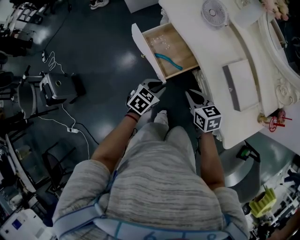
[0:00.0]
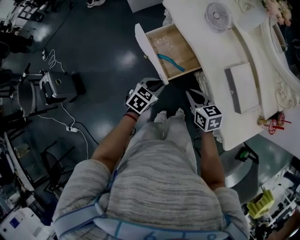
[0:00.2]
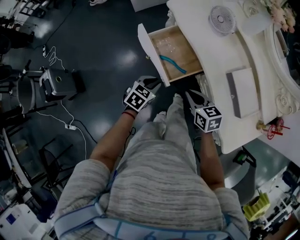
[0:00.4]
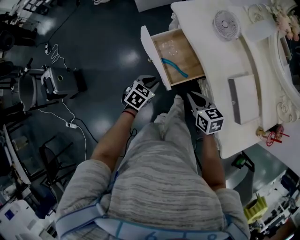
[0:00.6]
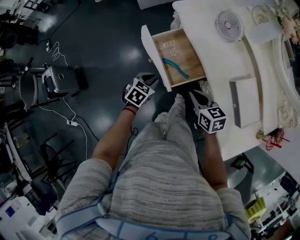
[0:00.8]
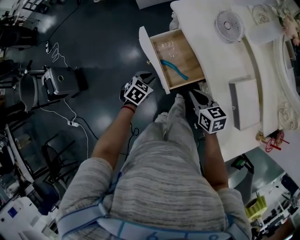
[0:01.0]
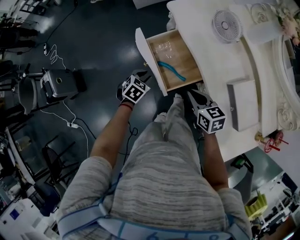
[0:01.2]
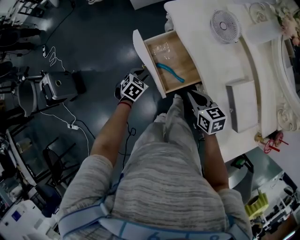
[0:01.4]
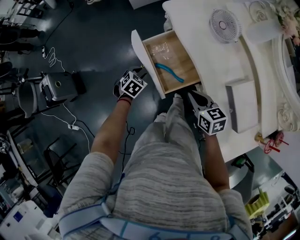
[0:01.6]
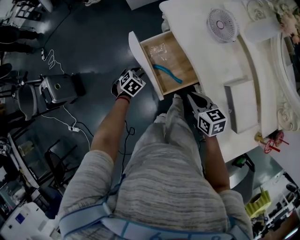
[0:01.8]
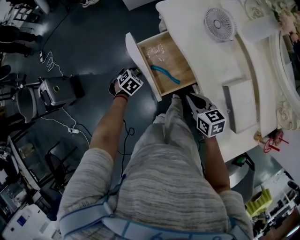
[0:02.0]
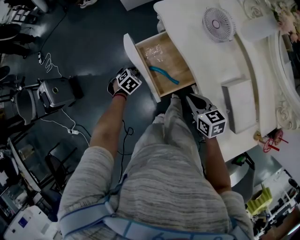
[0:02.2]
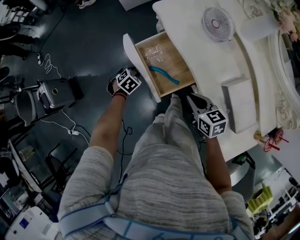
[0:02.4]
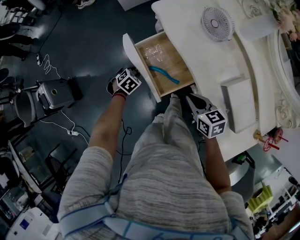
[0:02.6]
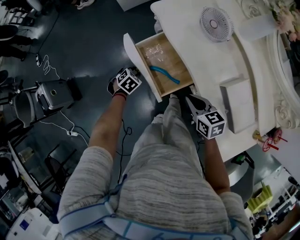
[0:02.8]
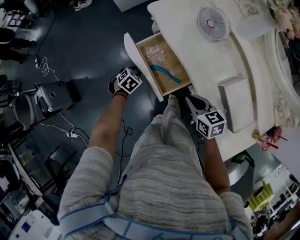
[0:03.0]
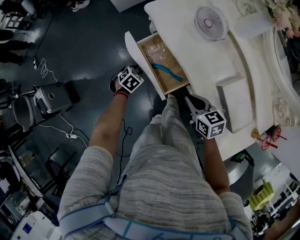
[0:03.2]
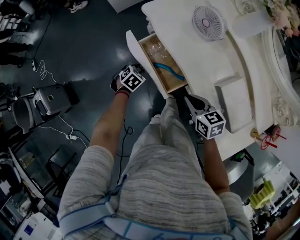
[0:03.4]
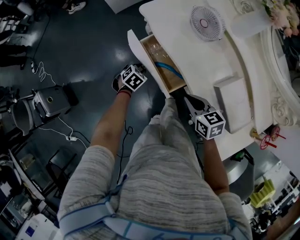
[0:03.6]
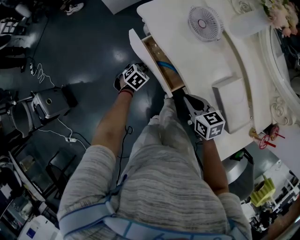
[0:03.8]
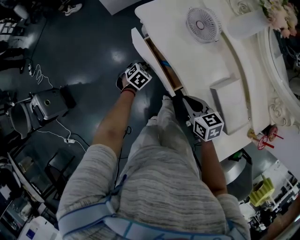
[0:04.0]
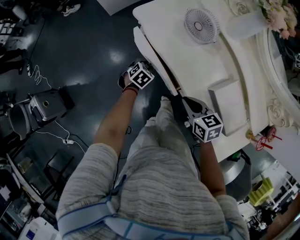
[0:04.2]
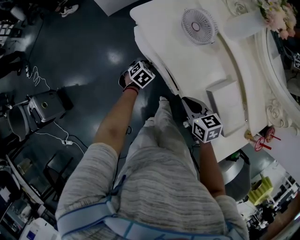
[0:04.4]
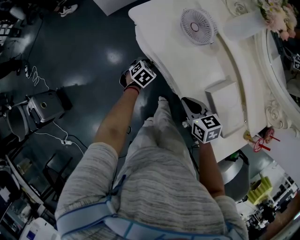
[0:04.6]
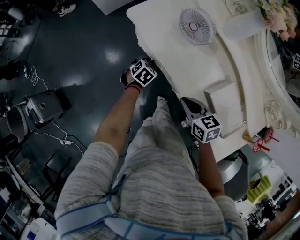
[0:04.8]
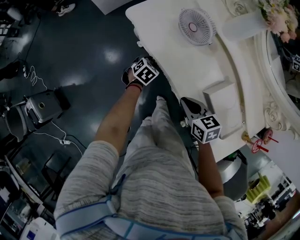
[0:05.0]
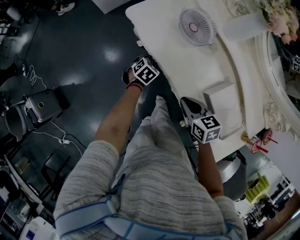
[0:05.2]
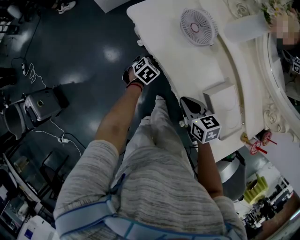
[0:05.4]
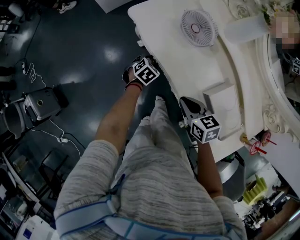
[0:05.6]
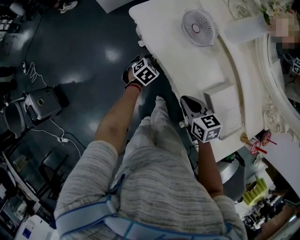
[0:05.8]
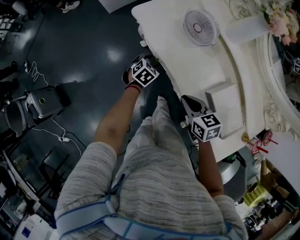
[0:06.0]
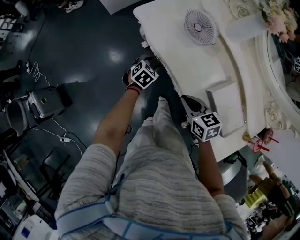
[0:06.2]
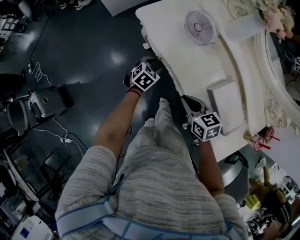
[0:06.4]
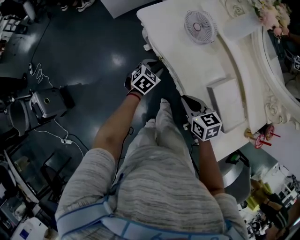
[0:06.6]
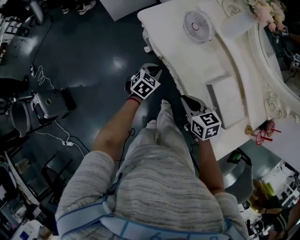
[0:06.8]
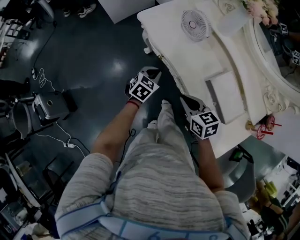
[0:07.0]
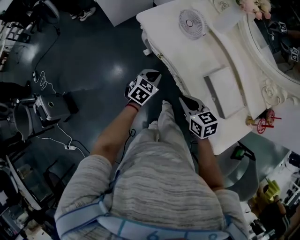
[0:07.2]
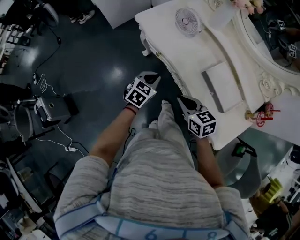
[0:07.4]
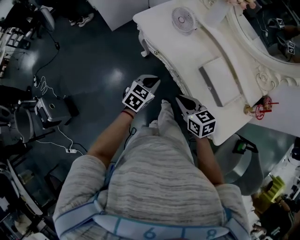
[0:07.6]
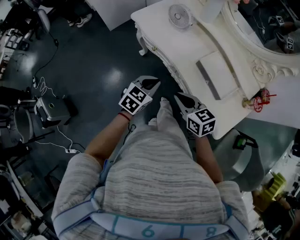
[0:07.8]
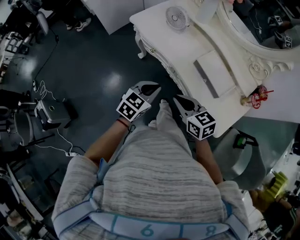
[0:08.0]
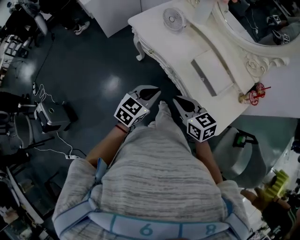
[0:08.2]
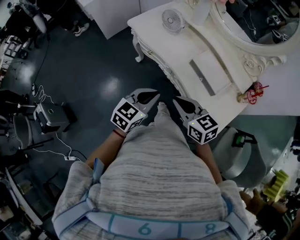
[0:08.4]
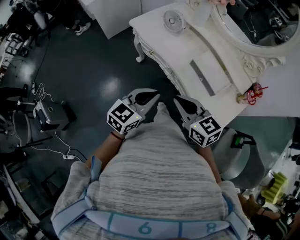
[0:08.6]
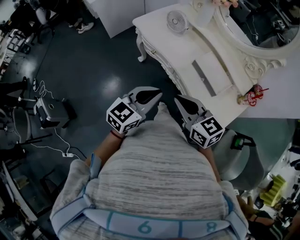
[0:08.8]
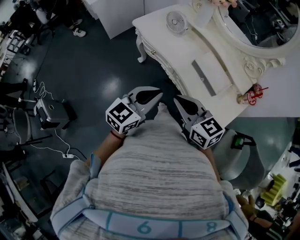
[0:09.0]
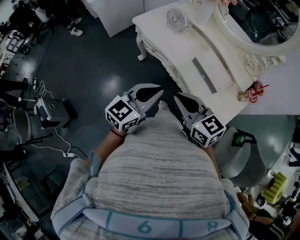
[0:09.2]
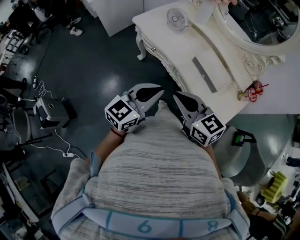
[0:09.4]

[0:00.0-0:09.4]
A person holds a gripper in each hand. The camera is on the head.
0:00.0 to 0:01.6: The left gripper goes some 20 cm forward, to the left and downward, and turns by approximately 20 degrees; the right gripper shifts some 10 cm forward.
0:01.6 to 0:03.2: The left gripper changes place by some 5 cm.
0:03.2 to 0:04.8: The left gripper travels to the right and forward by some 15 cm; the right gripper ends up approximately 5 cm from where it was.
0:04.8 to 0:06.2: The left gripper opens its fingers.
0:06.2 to 0:07.8: The right gripper travels backward and upward by roughly 20 cm, while the left gripper is displaced backward and upward by roughly 30 cm, changes its angle by roughly 20 degrees, and closes.
0:07.8 to 0:09.4: The grippers both shift upward and backward by approximately 15 cm. The left gripper turns by approximately 30 degrees.

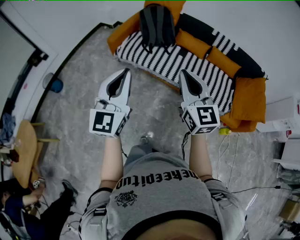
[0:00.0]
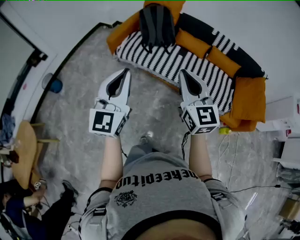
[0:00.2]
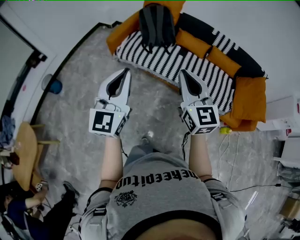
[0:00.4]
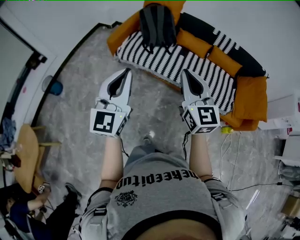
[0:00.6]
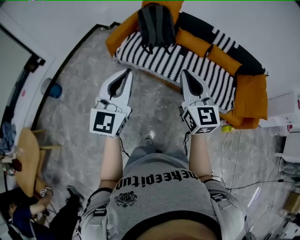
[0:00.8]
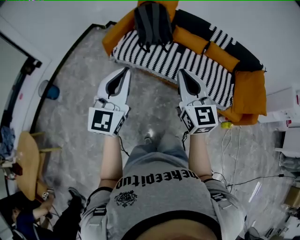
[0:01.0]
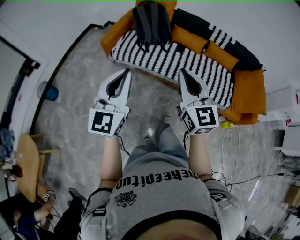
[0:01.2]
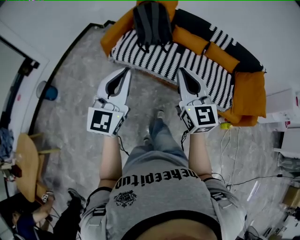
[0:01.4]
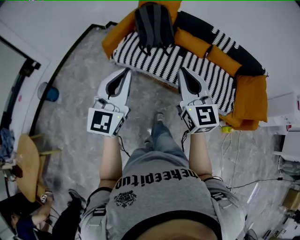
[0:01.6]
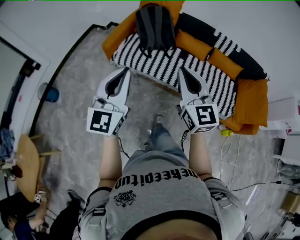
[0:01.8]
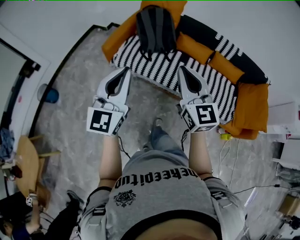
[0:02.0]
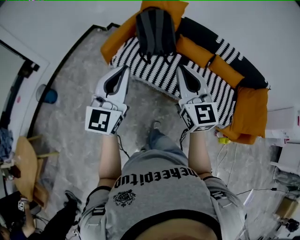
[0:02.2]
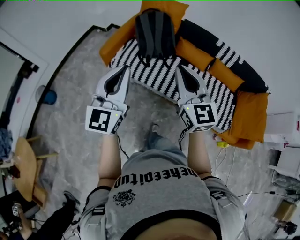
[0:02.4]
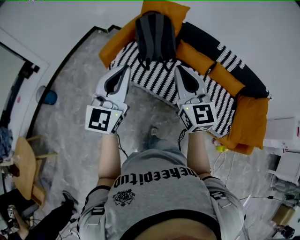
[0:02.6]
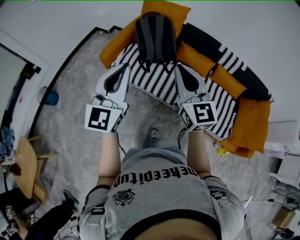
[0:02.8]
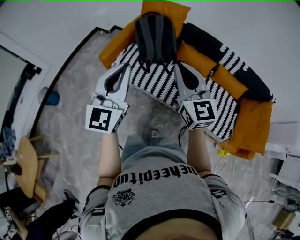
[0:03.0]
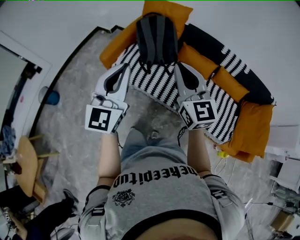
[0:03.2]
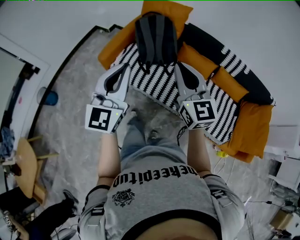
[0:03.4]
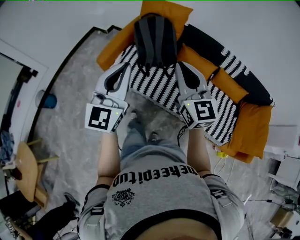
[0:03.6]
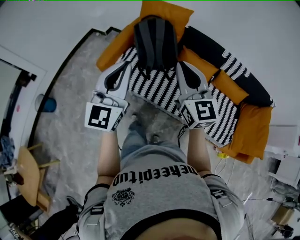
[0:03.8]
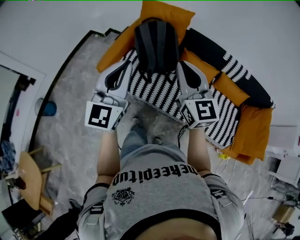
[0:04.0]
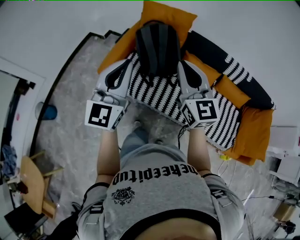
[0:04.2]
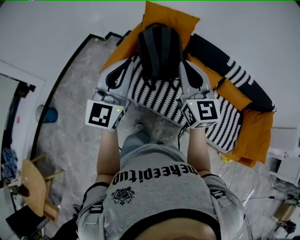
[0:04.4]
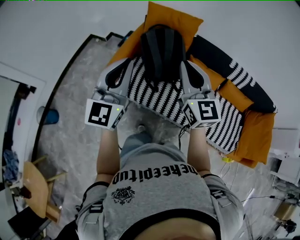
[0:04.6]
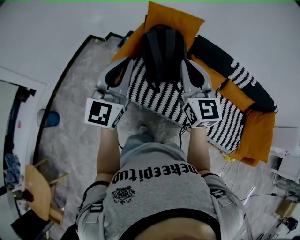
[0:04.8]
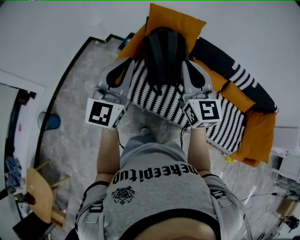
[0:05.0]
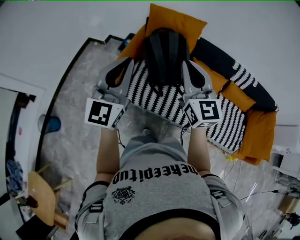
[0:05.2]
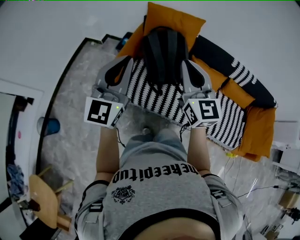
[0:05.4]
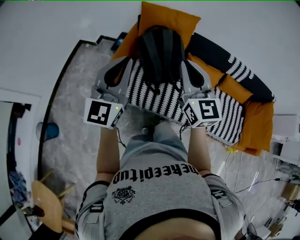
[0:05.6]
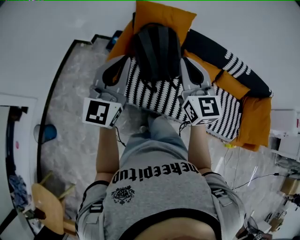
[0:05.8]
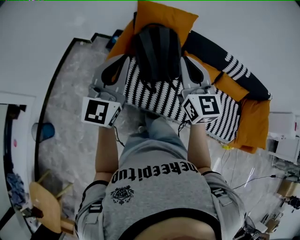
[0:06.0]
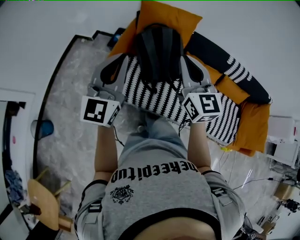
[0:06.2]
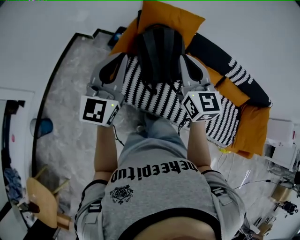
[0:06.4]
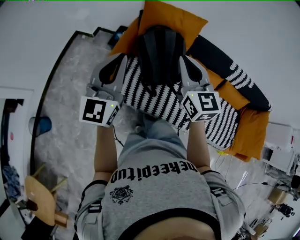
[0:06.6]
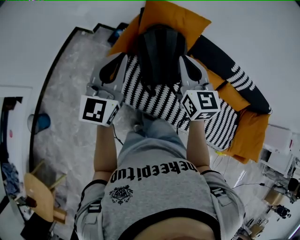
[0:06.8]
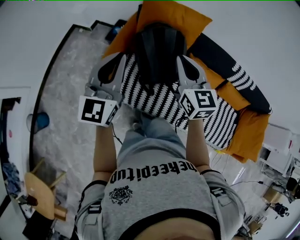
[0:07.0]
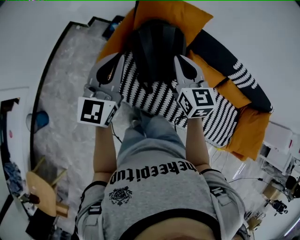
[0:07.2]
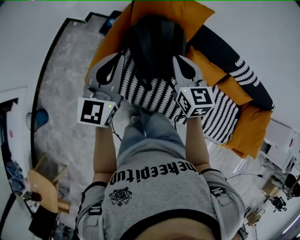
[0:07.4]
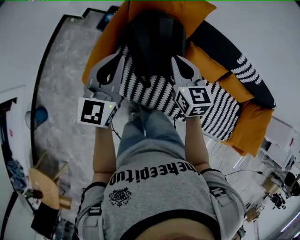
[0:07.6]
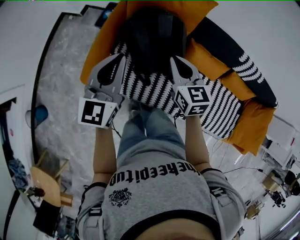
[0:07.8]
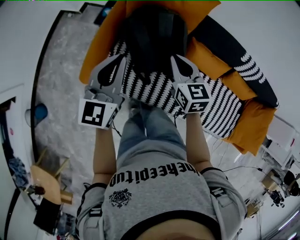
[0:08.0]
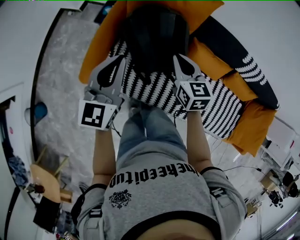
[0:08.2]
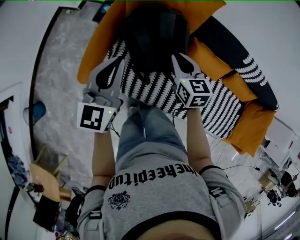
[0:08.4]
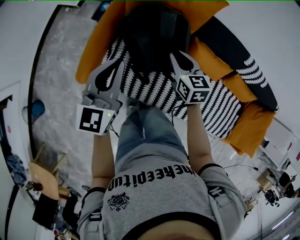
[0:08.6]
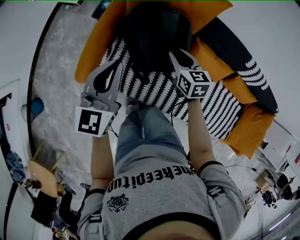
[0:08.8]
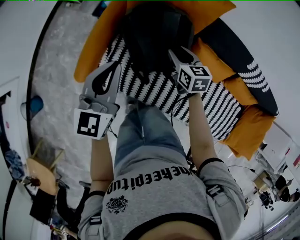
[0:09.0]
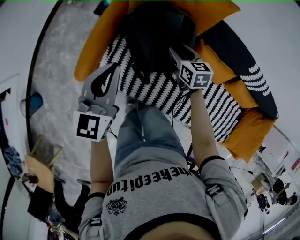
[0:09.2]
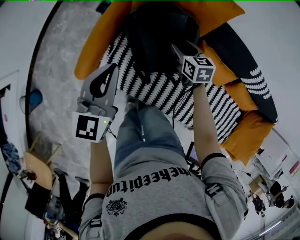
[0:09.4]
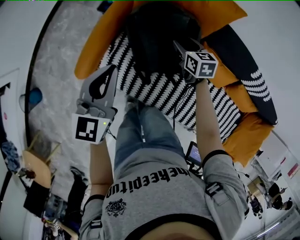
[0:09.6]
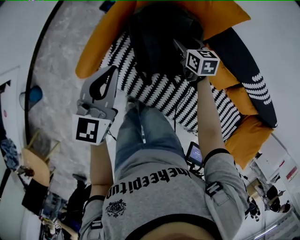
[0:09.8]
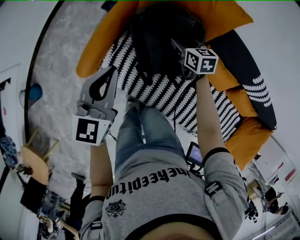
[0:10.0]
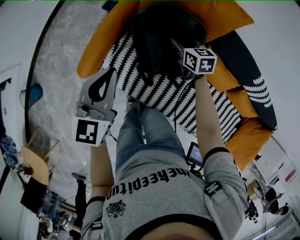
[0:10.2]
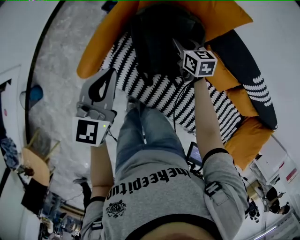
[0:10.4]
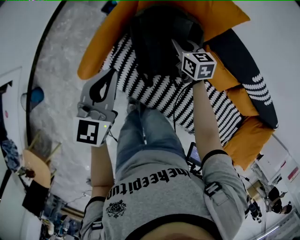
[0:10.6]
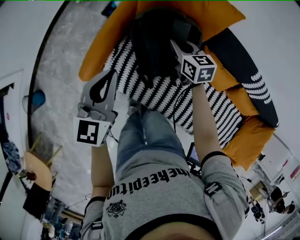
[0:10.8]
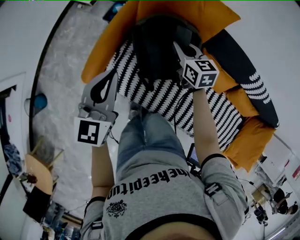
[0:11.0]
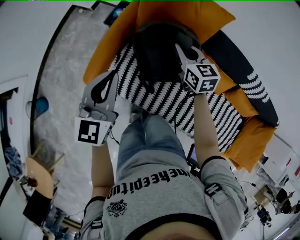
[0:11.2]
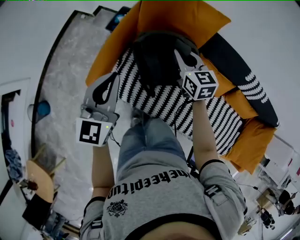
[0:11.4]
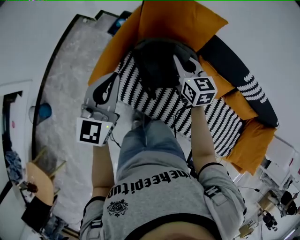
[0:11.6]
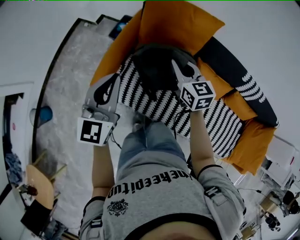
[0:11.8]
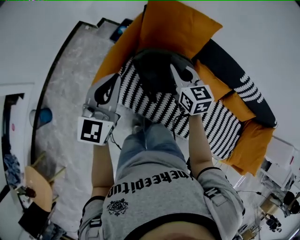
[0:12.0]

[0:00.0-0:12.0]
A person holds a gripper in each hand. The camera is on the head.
0:00.0 to 0:01.6: The grippers both shift forward by some 10 cm.
0:01.6 to 0:03.0: The grippers both shift forward by about 20 cm.
0:03.0 to 0:04.4: Both grippers travel together forward and to the left, roughly 20 cm.
0:04.4 to 0:06.0: The two grippers go roughly 10 cm forward and to the left.
0:06.0 to 0:07.6: The right gripper travels downward and forward by some 20 cm, and changes its angle by roughly 20 degrees; the left gripper travels forward and downward by roughly 15 cm.
0:07.6 to 0:09.0: The left gripper travels downward by some 5 cm. Meanwhile the right gripper heads downward and forward, covering some 20 cm, and opens its fingers.
0:09.0 to 0:10.4: The right gripper is displaced forward by some 5 cm, and closes.
0:10.4 to 0:12.0: The left gripper goes about 10 cm upward and backward, while the right gripper shifts about 20 cm upward and backward, and rotates some 20 degrees.

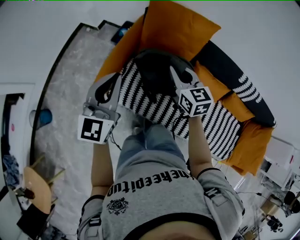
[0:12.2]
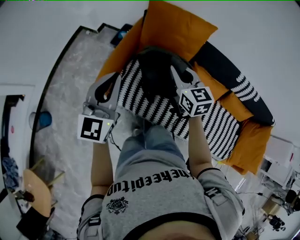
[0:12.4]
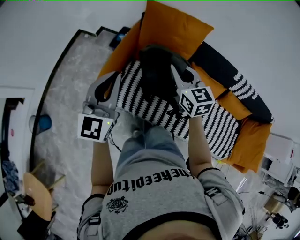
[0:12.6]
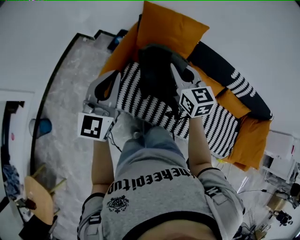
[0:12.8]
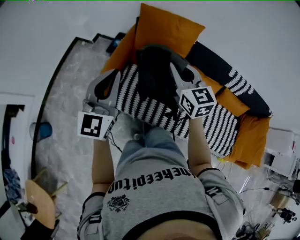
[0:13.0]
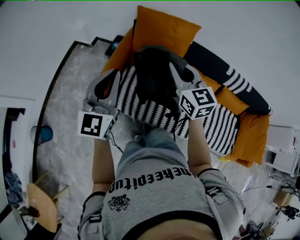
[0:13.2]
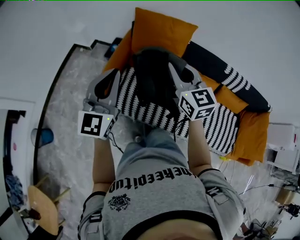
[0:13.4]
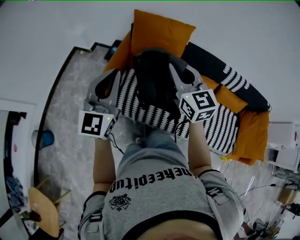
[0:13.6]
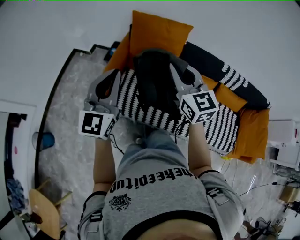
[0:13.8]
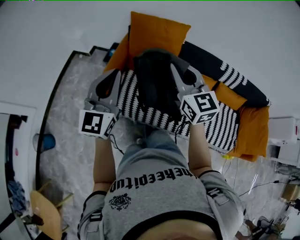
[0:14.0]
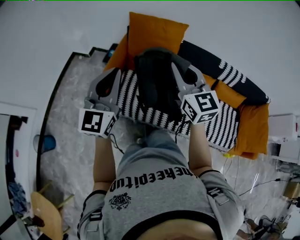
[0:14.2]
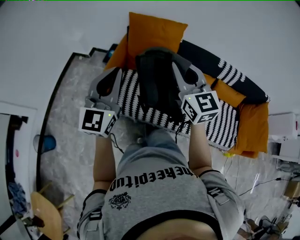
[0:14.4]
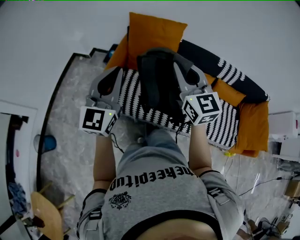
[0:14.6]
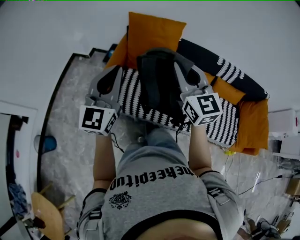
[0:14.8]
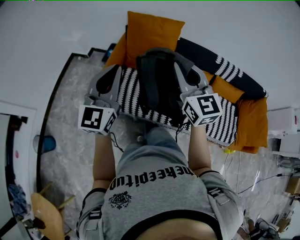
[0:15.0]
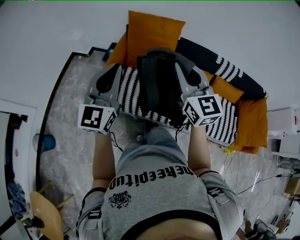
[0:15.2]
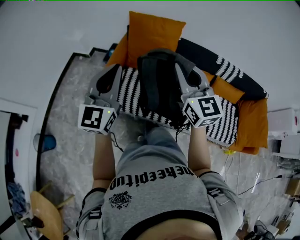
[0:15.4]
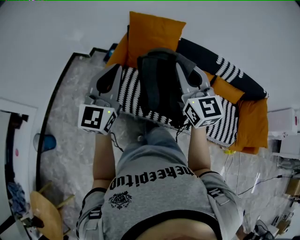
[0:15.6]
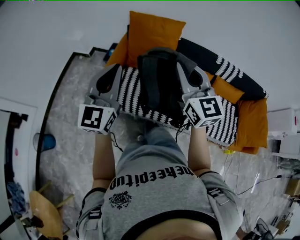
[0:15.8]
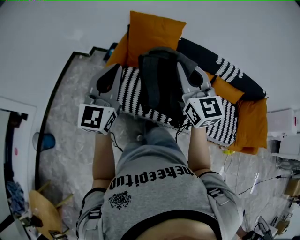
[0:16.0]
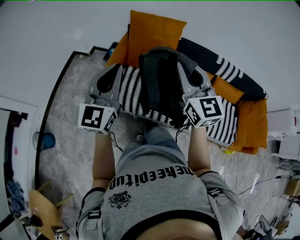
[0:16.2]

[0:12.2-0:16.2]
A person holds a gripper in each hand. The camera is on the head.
0:12.2 to 0:13.6: The right gripper goes approximately 15 cm upward and backward, while the left gripper shifts approximately 10 cm upward and backward.
0:13.6 to 0:14.8: The right gripper moves backward, some 5 cm.
0:14.8 to 0:16.2: The grippers move only a little.
